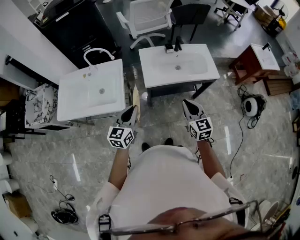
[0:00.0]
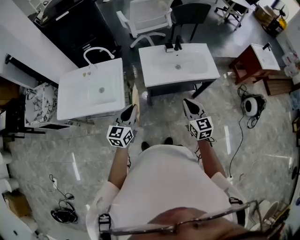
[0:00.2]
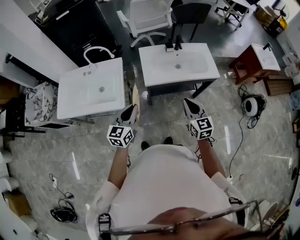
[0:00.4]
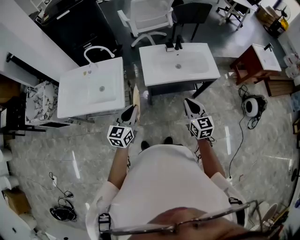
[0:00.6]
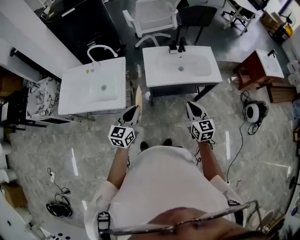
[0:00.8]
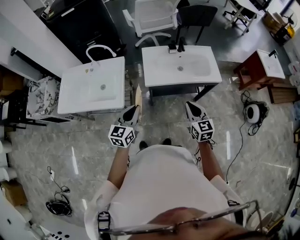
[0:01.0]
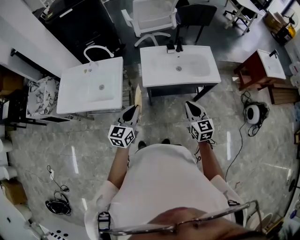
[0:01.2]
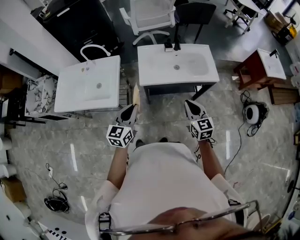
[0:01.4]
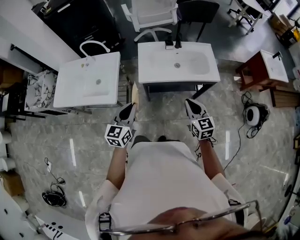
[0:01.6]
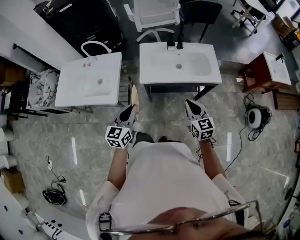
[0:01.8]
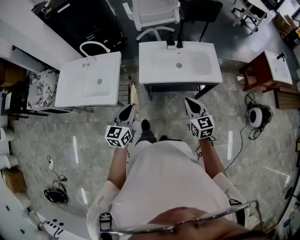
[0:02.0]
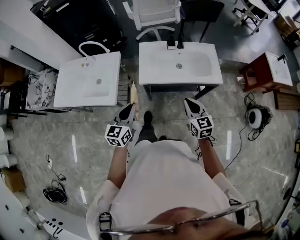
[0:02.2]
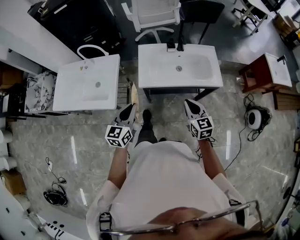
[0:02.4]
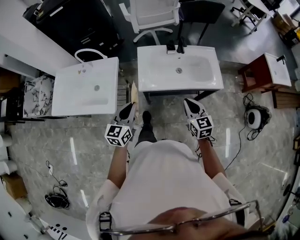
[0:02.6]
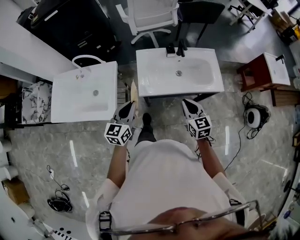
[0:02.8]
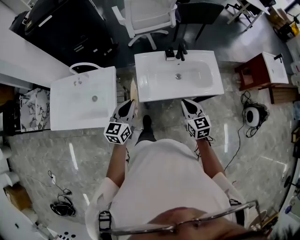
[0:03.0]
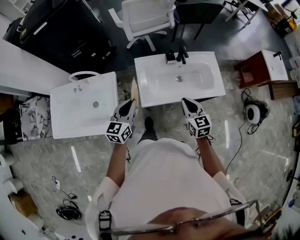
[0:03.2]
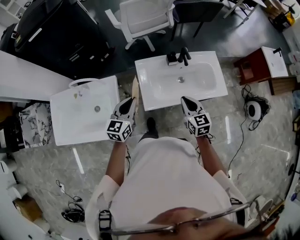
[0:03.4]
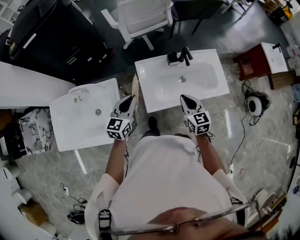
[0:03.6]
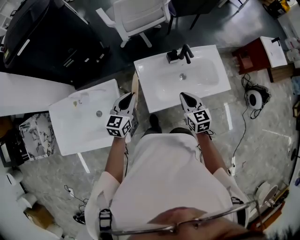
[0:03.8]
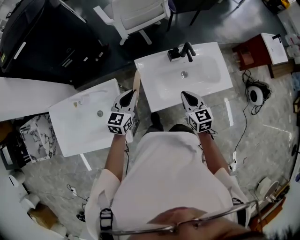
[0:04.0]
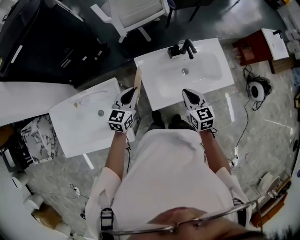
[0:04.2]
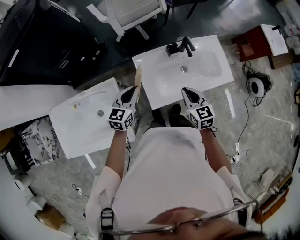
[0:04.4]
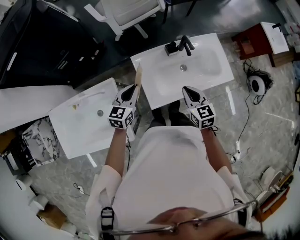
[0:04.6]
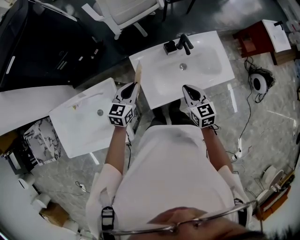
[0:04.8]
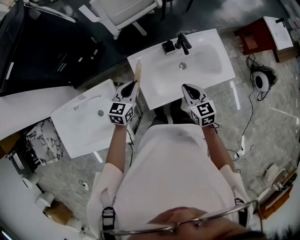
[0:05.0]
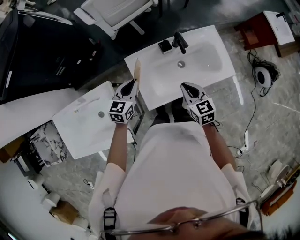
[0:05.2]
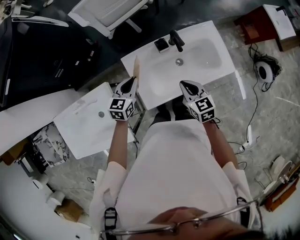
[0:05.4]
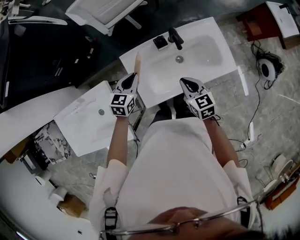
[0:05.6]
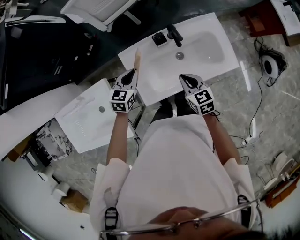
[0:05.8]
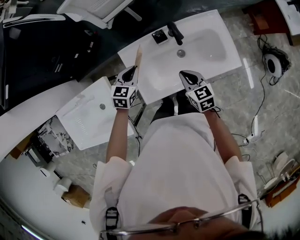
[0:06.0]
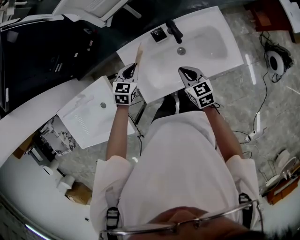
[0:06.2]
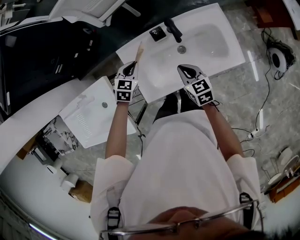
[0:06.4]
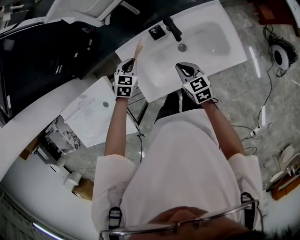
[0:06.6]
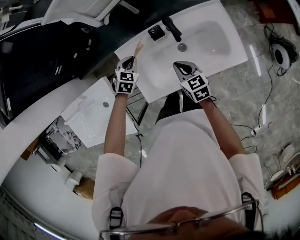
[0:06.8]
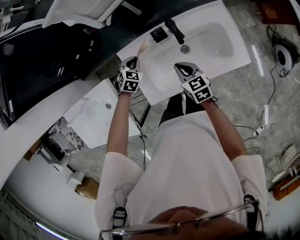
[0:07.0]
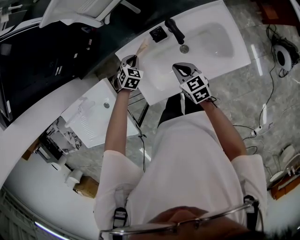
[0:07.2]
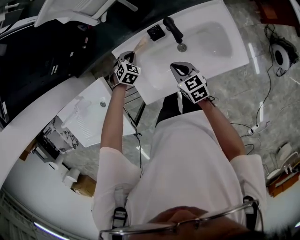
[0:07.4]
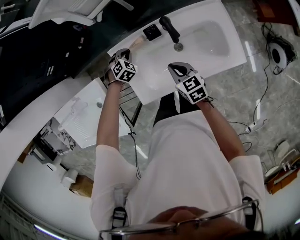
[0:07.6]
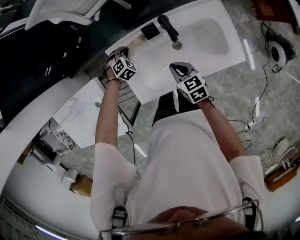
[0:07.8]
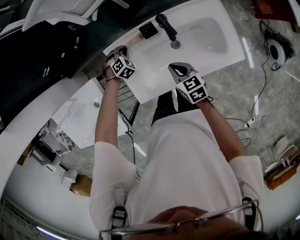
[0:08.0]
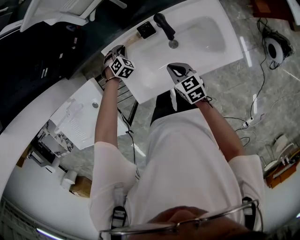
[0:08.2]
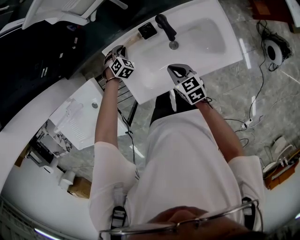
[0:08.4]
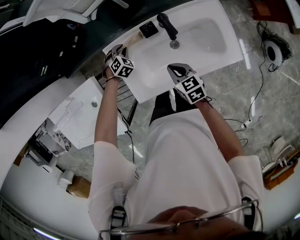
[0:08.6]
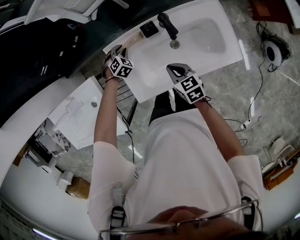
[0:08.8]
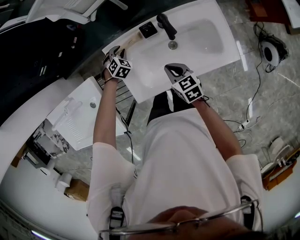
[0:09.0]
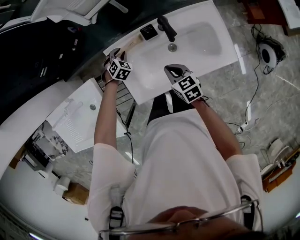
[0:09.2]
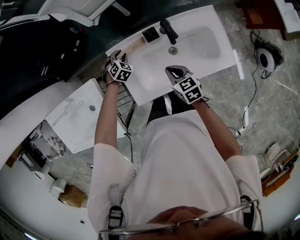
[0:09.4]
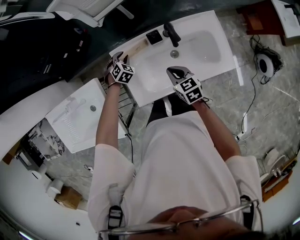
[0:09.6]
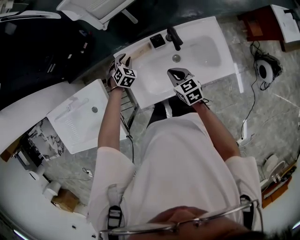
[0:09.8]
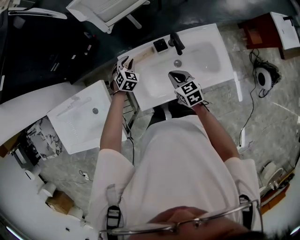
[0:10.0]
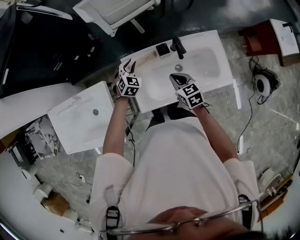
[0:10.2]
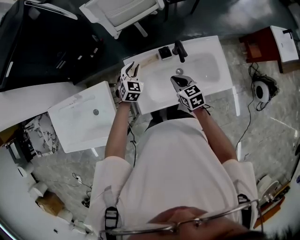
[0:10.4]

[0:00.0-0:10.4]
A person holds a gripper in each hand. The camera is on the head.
0:00.0 to 0:01.4: Both grippers travel together to the right, approximately 10 cm.
0:01.4 to 0:03.0: Both grippers travel together forward, about 20 cm.
0:03.0 to 0:04.4: The right gripper is displaced forward and to the left by roughly 15 cm. The left gripper travels forward by roughly 20 cm.
0:04.4 to 0:06.0: The right gripper is displaced downward, to the right and forward by about 15 cm; the left gripper is displaced forward, to the right and downward by about 15 cm.
0:06.0 to 0:07.4: The right gripper travels downward by about 5 cm, while the left gripper goes approximately 15 cm downward and forward, and turns by approximately 40 degrees.
0:07.4 to 0:09.0: The grippers move only a little.
0:09.0 to 0:10.4: The left gripper is displaced upward by about 20 cm, and swivels roughly 30 degrees. Meanwhile the right gripper is displaced upward by roughly 10 cm.

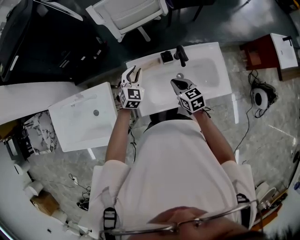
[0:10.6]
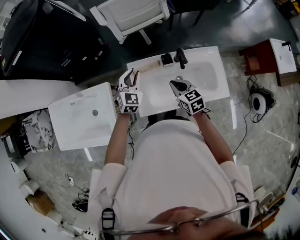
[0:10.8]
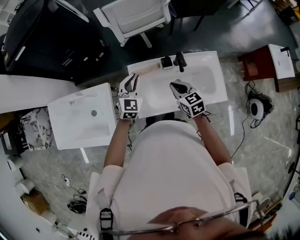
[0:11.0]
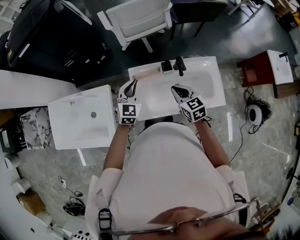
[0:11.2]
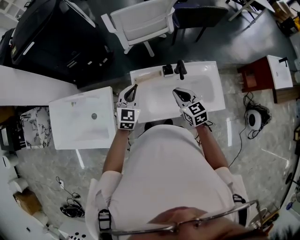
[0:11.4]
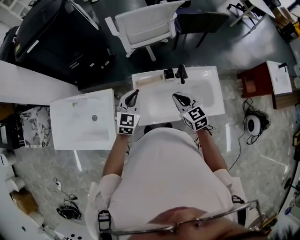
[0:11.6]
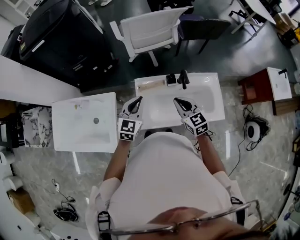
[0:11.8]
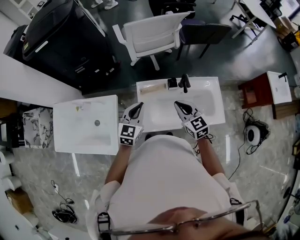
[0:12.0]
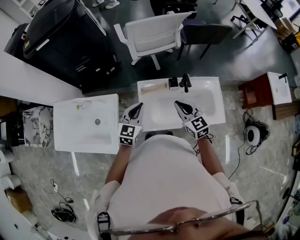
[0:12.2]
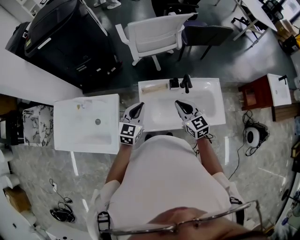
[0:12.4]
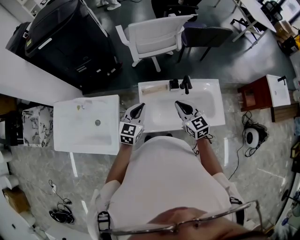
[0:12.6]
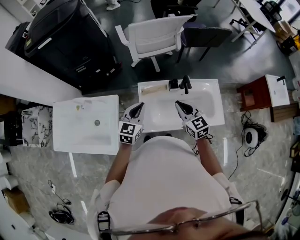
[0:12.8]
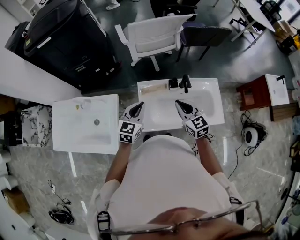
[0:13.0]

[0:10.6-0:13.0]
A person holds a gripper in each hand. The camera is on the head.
0:10.6 to 0:11.8: The right gripper is displaced upward by approximately 10 cm, and rotates approximately 20 degrees. Meanwhile the left gripper is displaced upward and backward by about 15 cm, changes its angle by some 20 degrees, and closes its fingers.
0:11.8 to 0:13.0: The grippers make only small movements.

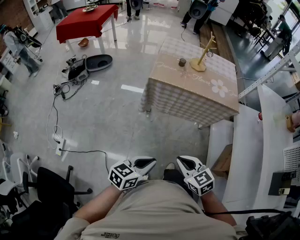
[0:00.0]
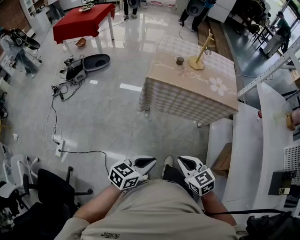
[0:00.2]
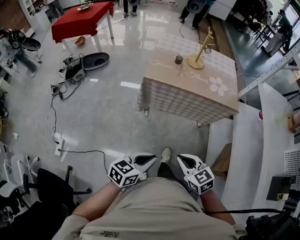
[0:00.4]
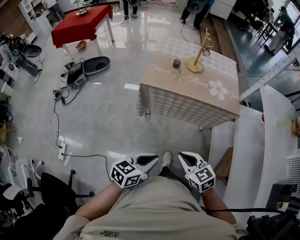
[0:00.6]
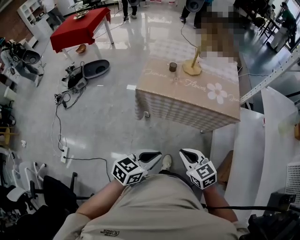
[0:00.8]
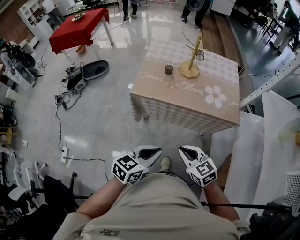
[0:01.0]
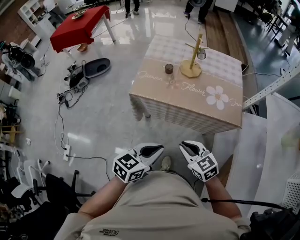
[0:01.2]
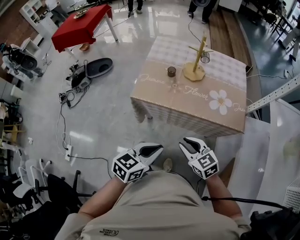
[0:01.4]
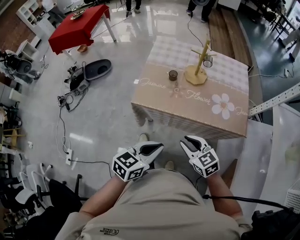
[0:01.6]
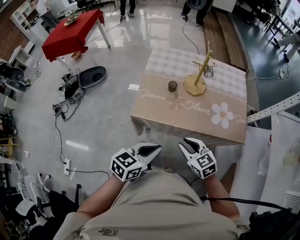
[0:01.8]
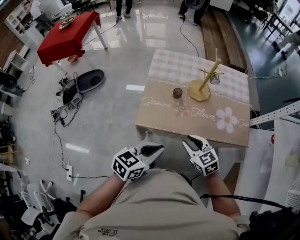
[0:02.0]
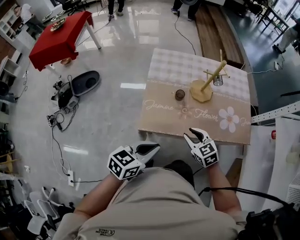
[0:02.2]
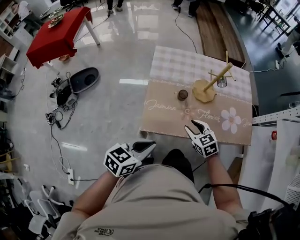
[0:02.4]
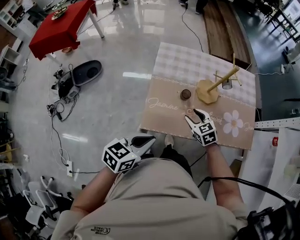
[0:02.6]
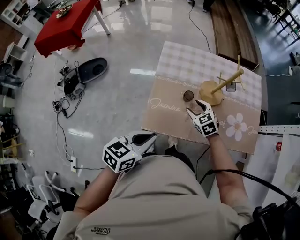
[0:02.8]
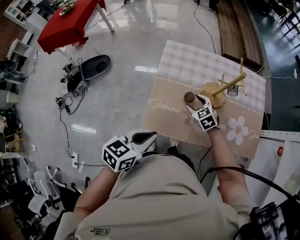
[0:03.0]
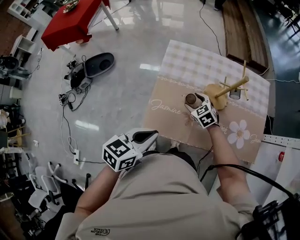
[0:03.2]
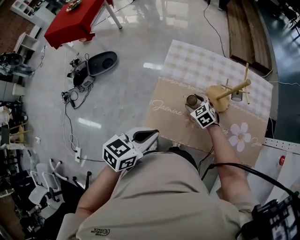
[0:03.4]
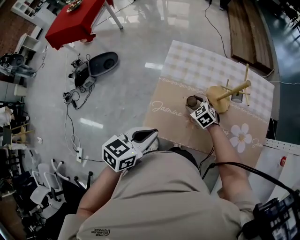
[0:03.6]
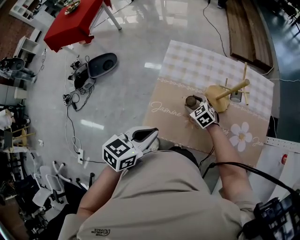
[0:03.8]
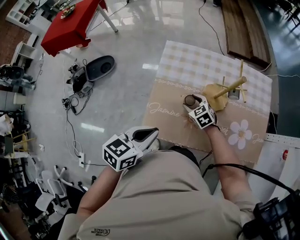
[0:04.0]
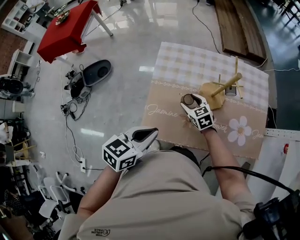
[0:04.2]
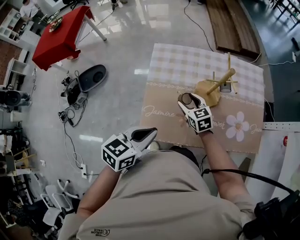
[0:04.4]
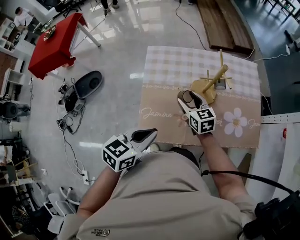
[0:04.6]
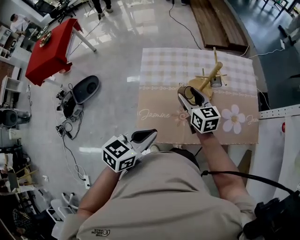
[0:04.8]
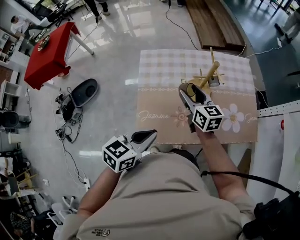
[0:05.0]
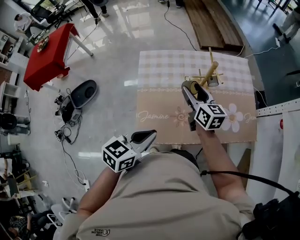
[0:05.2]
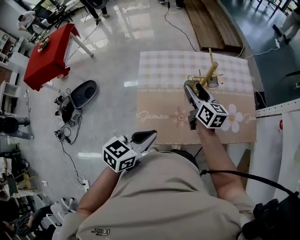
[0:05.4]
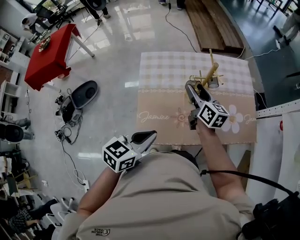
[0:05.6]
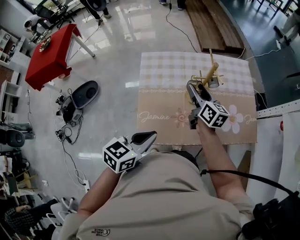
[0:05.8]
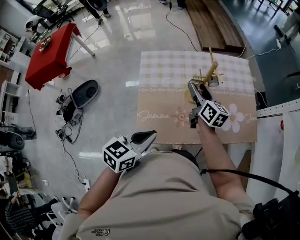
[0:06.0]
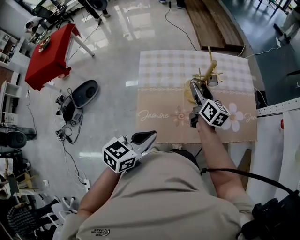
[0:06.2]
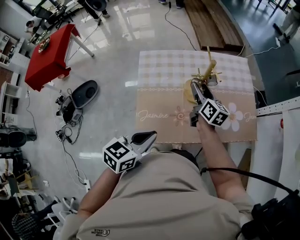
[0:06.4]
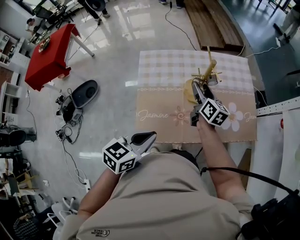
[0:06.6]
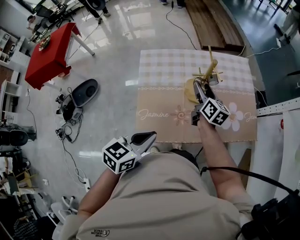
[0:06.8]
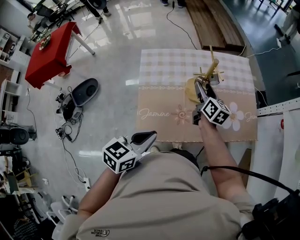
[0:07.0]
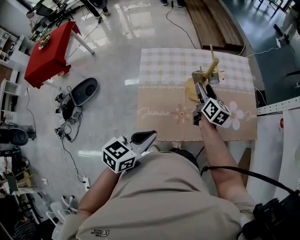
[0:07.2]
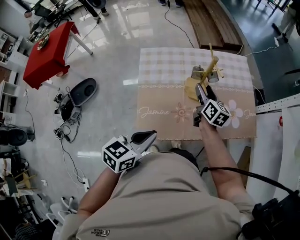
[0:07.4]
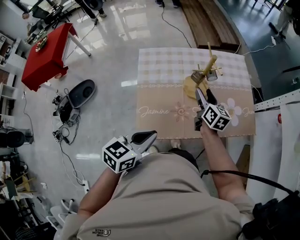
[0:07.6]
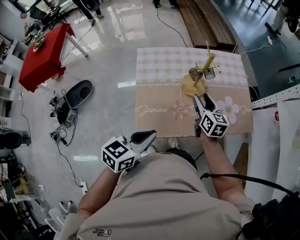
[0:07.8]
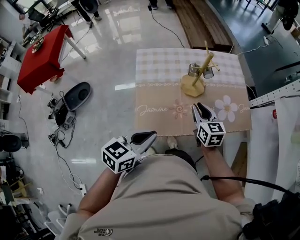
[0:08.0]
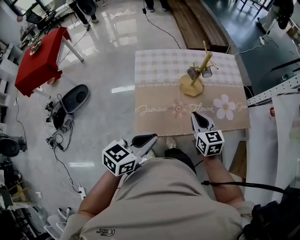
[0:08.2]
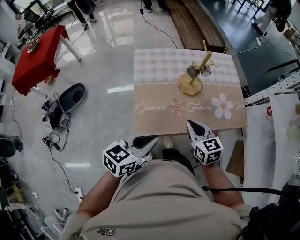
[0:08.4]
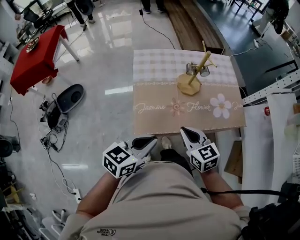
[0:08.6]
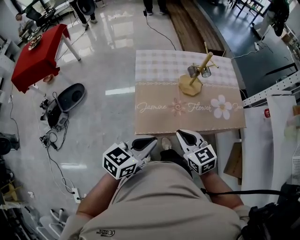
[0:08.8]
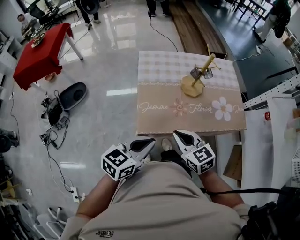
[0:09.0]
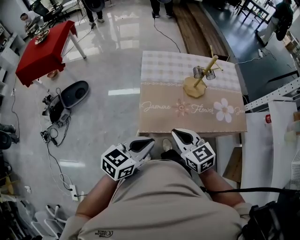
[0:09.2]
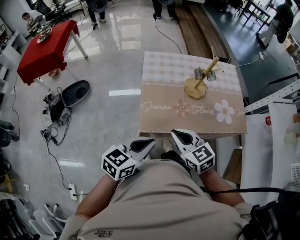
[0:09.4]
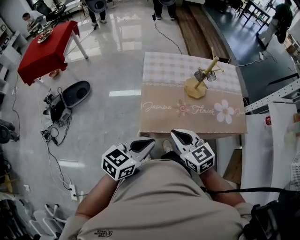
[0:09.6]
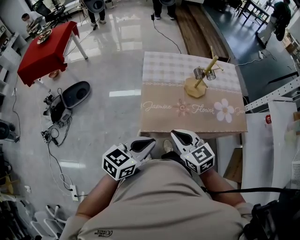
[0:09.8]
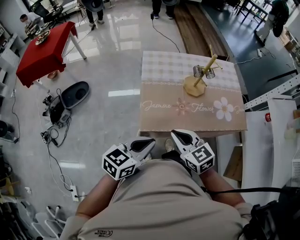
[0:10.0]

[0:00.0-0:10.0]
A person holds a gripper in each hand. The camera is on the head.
0:00.0 to 0:01.4: The right gripper goes approximately 30 cm forward. Meanwhile the left gripper heads forward and to the right, covering some 35 cm.
0:01.4 to 0:02.8: The left gripper moves forward and to the left, roughly 30 cm; the right gripper moves forward, about 35 cm, rotates roughly 20 degrees, and opens its fingers.
0:02.8 to 0:04.2: Both grippers travel together forward, about 5 cm.
0:04.2 to 0:05.8: The right gripper travels upward and to the right by approximately 20 cm, and swivels some 60 degrees.
0:05.8 to 0:07.2: The right gripper moves about 5 cm.
0:07.2 to 0:08.6: The right gripper goes some 30 cm backward, rotates about 40 degrees, and closes. Meanwhile the left gripper shifts roughly 10 cm backward.
0:08.6 to 0:10.0: The right gripper shifts about 5 cm to the left, while the left gripper moves about 5 cm.
